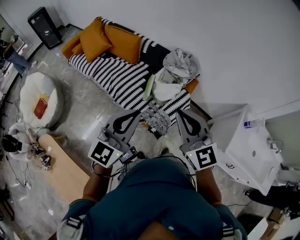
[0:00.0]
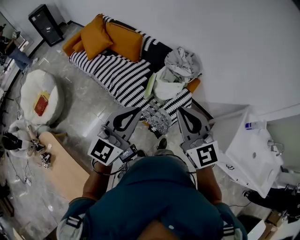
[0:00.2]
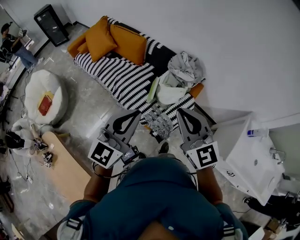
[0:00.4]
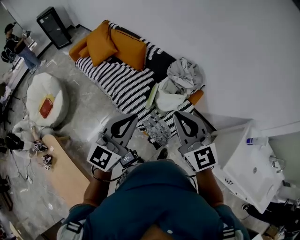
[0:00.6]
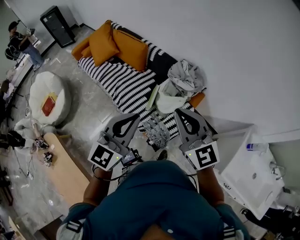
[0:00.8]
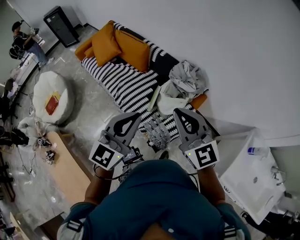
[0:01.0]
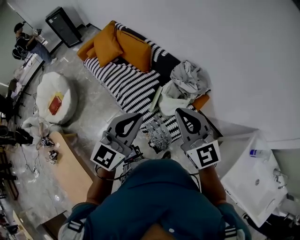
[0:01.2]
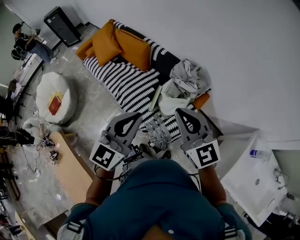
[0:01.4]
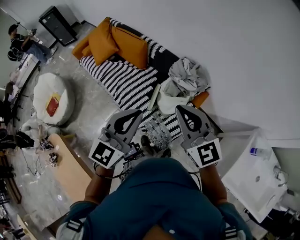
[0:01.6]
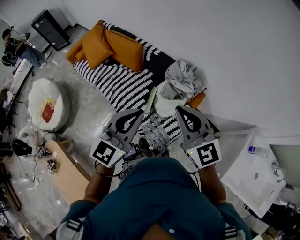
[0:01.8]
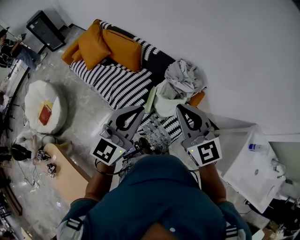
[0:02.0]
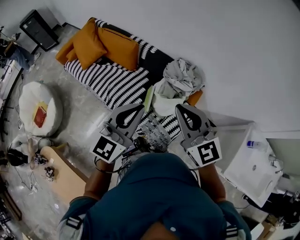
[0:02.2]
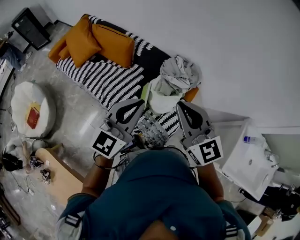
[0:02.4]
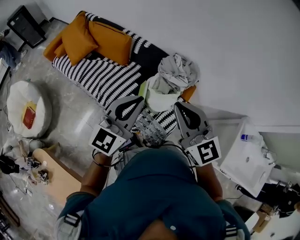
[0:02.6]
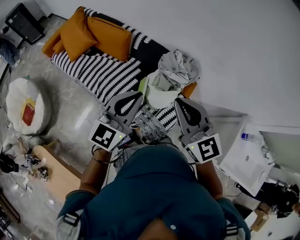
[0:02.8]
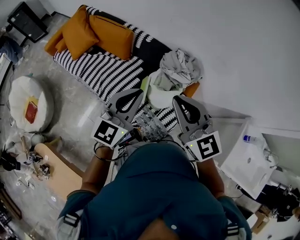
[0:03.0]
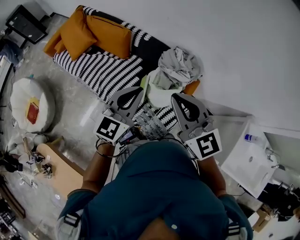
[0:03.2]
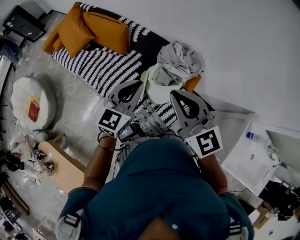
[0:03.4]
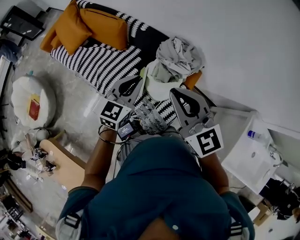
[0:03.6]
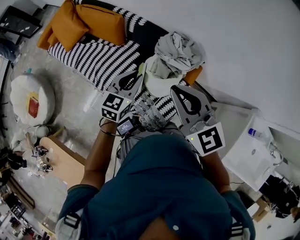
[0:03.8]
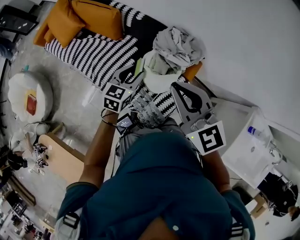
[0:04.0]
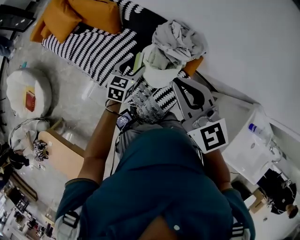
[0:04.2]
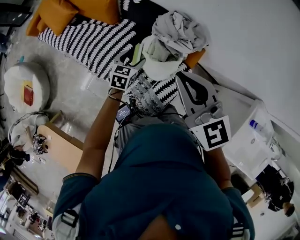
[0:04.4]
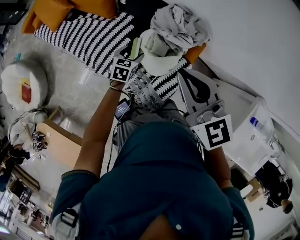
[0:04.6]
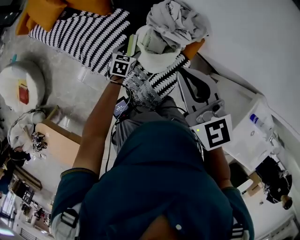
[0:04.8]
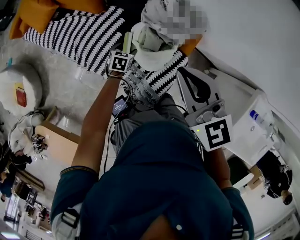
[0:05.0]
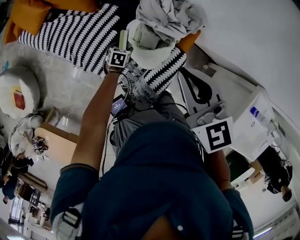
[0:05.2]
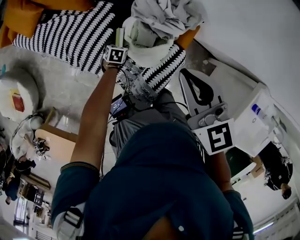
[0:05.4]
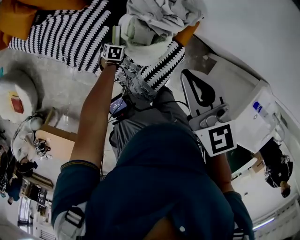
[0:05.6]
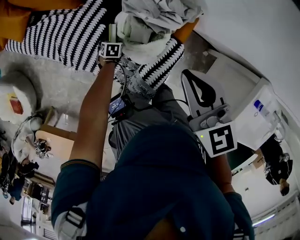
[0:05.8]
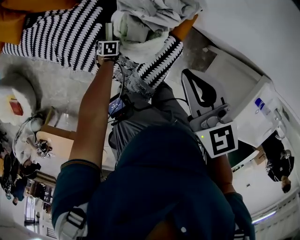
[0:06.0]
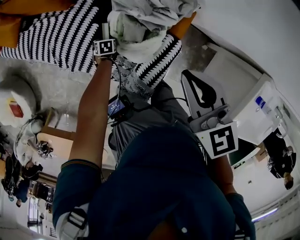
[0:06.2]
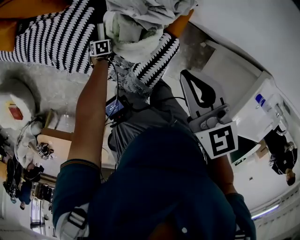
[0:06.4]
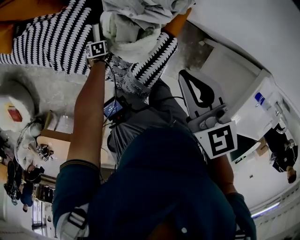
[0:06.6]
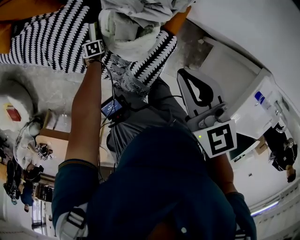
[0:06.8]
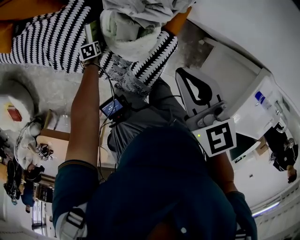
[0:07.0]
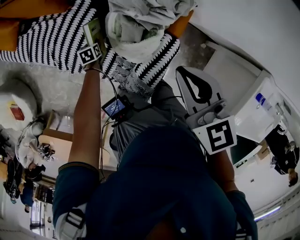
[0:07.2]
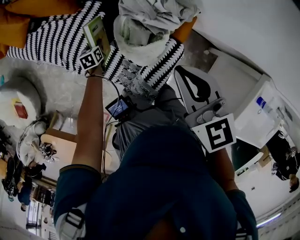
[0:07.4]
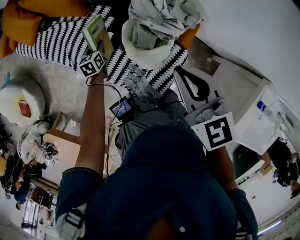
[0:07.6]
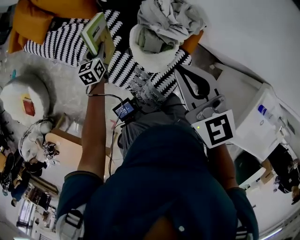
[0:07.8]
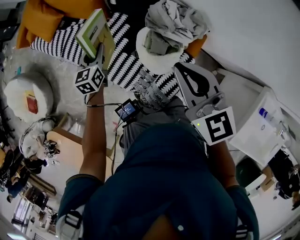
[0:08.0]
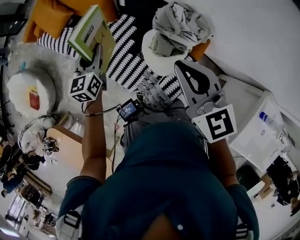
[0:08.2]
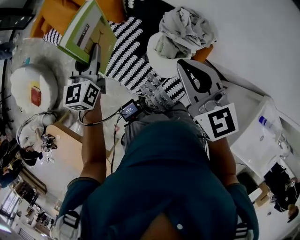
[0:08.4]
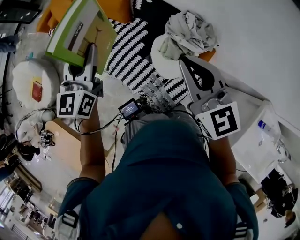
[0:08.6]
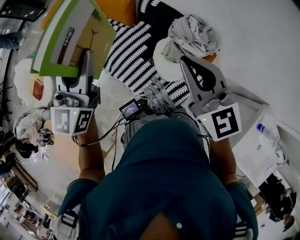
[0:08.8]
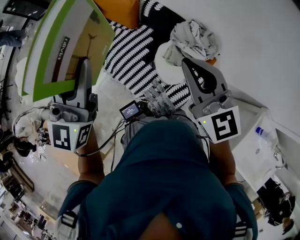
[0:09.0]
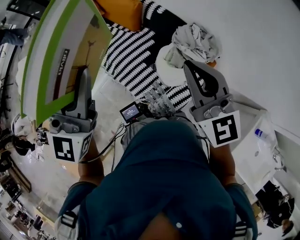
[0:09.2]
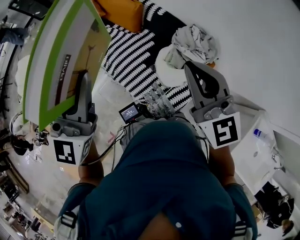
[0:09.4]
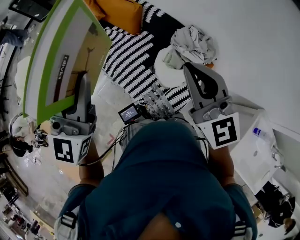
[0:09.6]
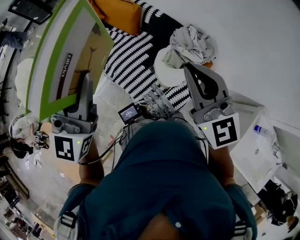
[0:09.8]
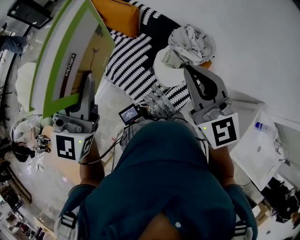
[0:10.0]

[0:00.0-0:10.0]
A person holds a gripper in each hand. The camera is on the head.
0.0 to 1.4 s: Both grippers move forward and to the right, about 20 cm.
1.4 to 2.8 s: The right gripper is displaced to the left and forward by roughly 15 cm. Meanwhile the left gripper shifts roughly 15 cm forward and to the left.
2.8 to 4.2 s: The left gripper shifts about 35 cm downward and forward, angles its fingers downward, by about 30 degrees, and opens; the right gripper travels forward, to the right and downward by about 15 cm.
4.2 to 5.8 s: The left gripper goes about 35 cm downward, and tilts its fingers approximately 40 degrees downward; the right gripper heads downward, covering about 15 cm, and rotates roughly 20 degrees.
5.8 to 7.2 s: The left gripper changes place by roughly 5 cm, rotates about 20 degrees, and closes.
7.2 to 8.6 s: The right gripper moves upward and to the left, roughly 25 cm, and changes its angle by approximately 30 degrees. Meanwhile the left gripper goes roughly 60 cm upward, and angles its fingers upward, by about 60 degrees.
8.6 to 10.0 s: The left gripper moves backward and upward, some 25 cm, and rotates approximately 20 degrees, while the right gripper heads backward and upward, covering some 10 cm.

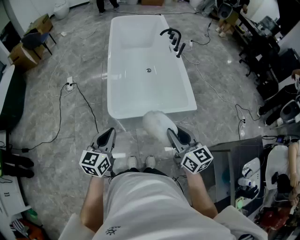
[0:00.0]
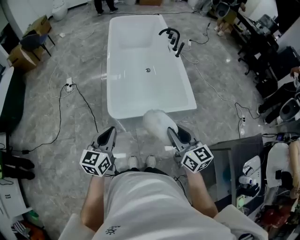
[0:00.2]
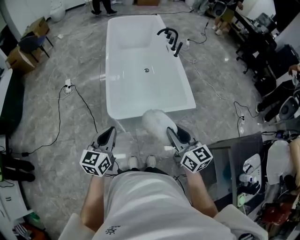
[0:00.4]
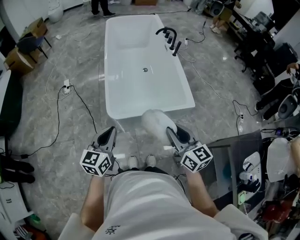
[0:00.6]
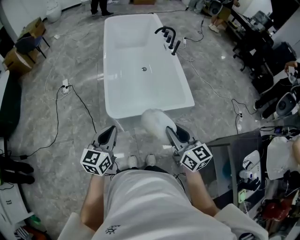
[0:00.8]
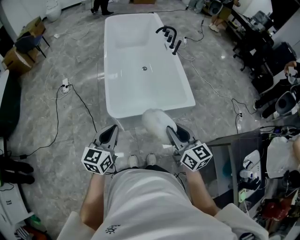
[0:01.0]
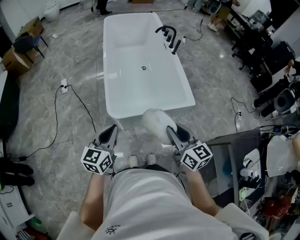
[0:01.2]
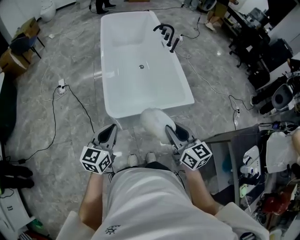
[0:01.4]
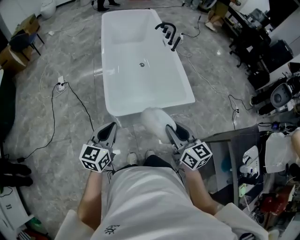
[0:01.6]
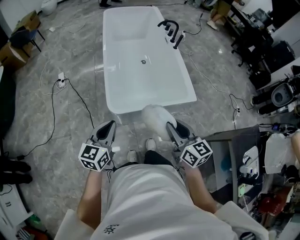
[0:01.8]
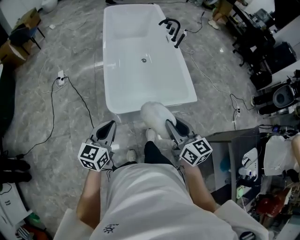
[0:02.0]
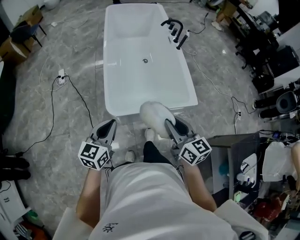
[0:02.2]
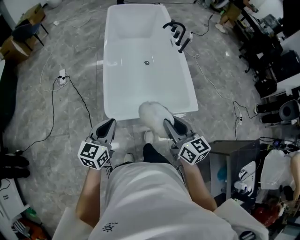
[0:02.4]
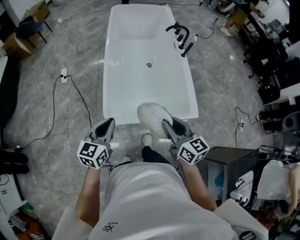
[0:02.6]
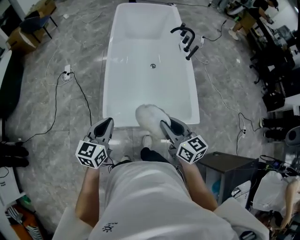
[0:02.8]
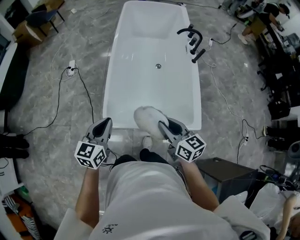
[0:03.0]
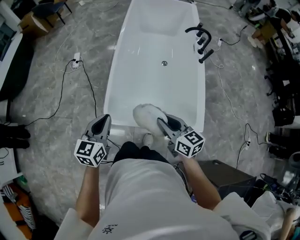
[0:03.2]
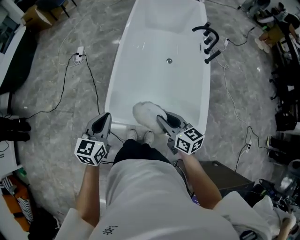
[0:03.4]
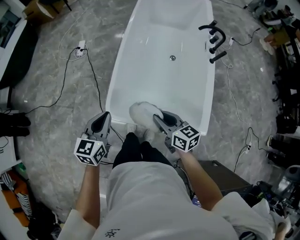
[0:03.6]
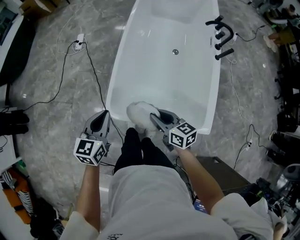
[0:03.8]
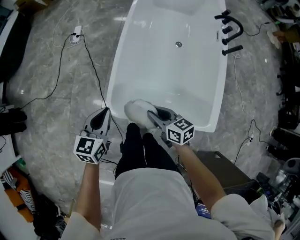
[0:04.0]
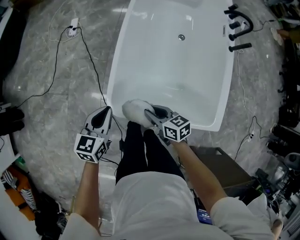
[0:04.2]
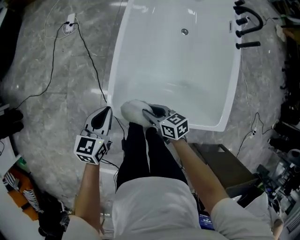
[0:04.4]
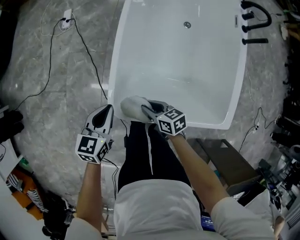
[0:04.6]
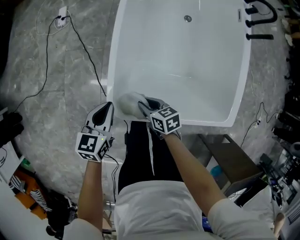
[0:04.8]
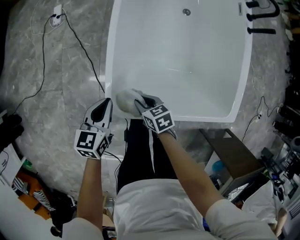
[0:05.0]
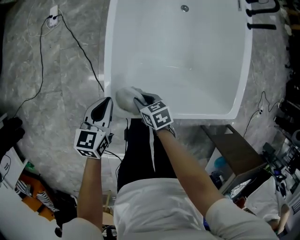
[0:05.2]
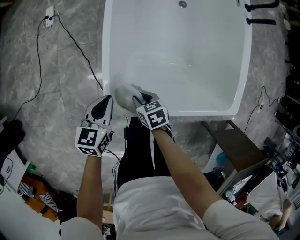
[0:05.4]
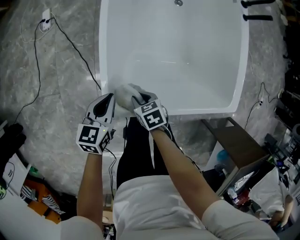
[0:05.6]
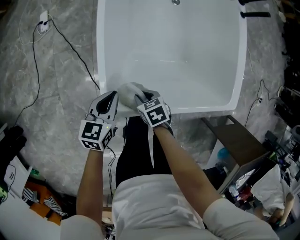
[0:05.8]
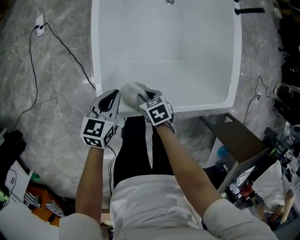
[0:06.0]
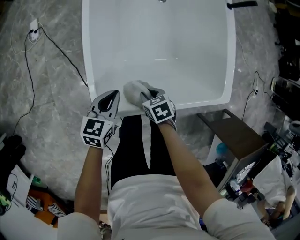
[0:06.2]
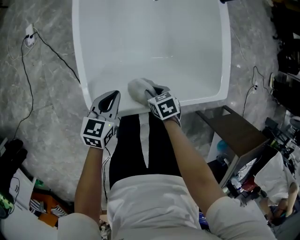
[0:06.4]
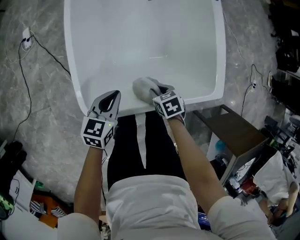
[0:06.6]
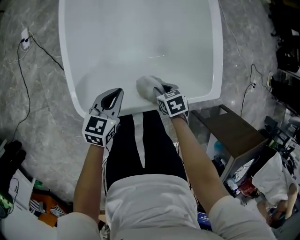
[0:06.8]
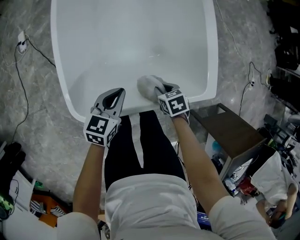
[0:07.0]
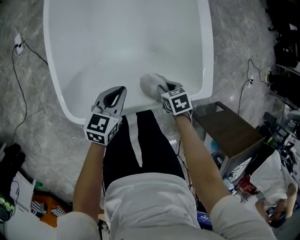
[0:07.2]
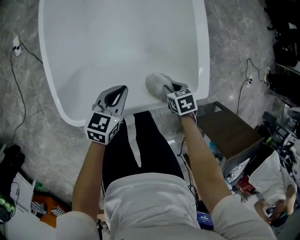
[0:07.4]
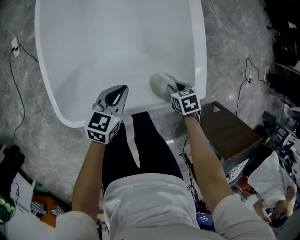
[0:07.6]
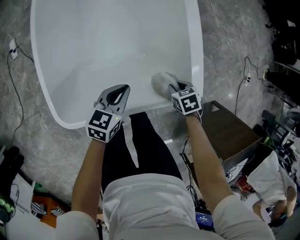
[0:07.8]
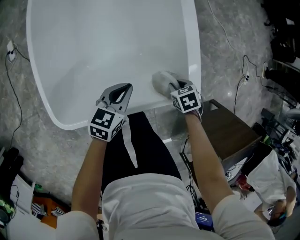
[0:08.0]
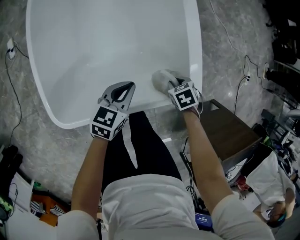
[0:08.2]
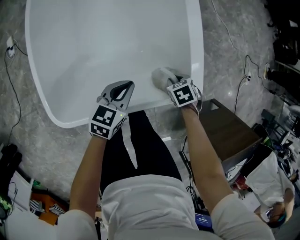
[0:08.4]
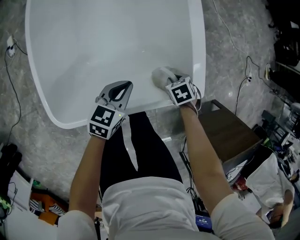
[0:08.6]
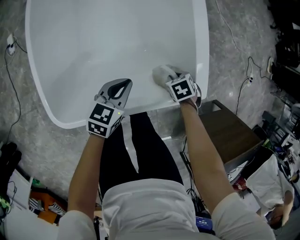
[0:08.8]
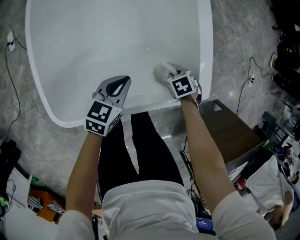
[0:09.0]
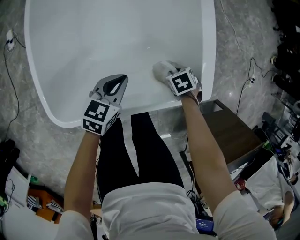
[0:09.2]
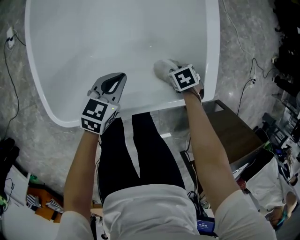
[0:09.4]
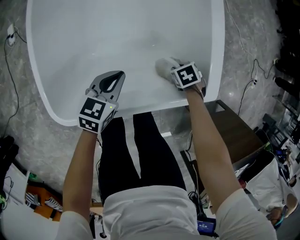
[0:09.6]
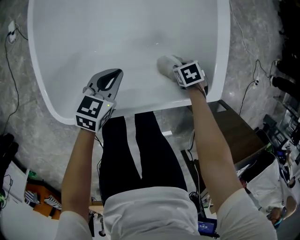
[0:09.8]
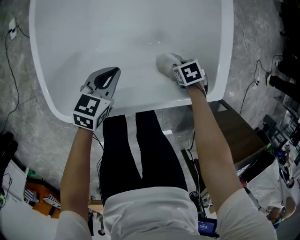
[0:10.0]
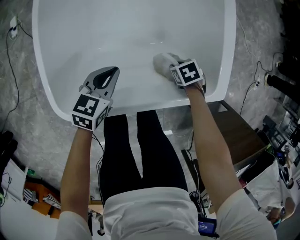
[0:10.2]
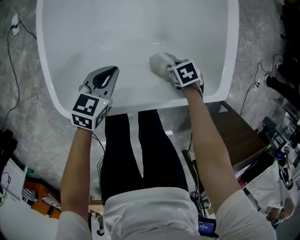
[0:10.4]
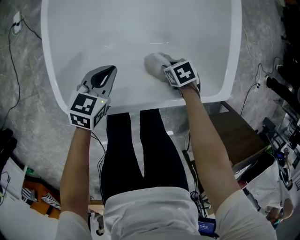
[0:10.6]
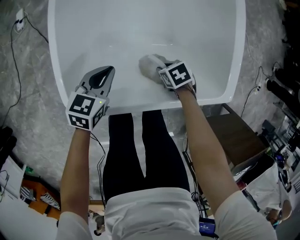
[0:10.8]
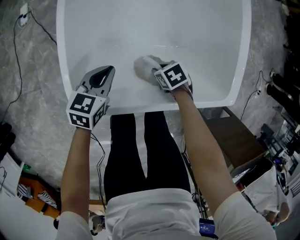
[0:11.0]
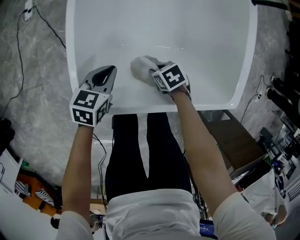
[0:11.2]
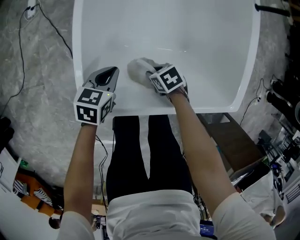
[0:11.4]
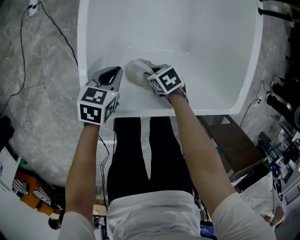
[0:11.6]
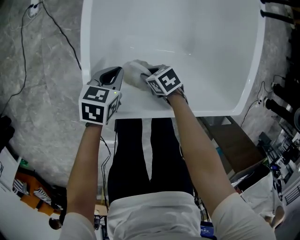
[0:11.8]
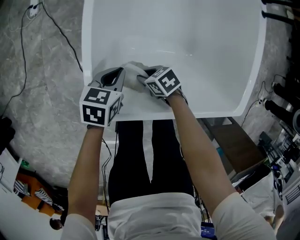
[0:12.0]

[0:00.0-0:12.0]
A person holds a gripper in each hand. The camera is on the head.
0.0 to 1.6 s: The grippers move only a little.
1.6 to 3.0 s: Both grippers move forward, roughly 20 cm. The right gripper changes its angle by approximately 20 degrees.
3.0 to 4.4 s: The right gripper shifts about 30 cm downward and to the left, and changes its angle by some 30 degrees; the left gripper goes about 20 cm downward and forward.
4.4 to 6.0 s: The right gripper is displaced downward by about 10 cm, and changes its angle by some 30 degrees; the left gripper is displaced downward and to the right by some 15 cm.
6.0 to 7.6 s: The left gripper shifts by about 25 cm. The right gripper moves approximately 35 cm.
7.6 to 9.0 s: The right gripper goes about 5 cm downward.
9.0 to 10.4 s: The right gripper shifts by some 10 cm, while the left gripper changes place by some 15 cm.
10.4 to 12.0 s: The left gripper moves some 15 cm, while the right gripper moves approximately 30 cm, and rotates about 30 degrees.

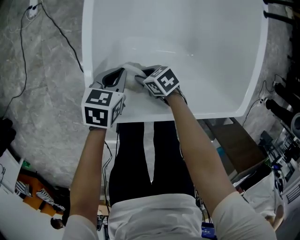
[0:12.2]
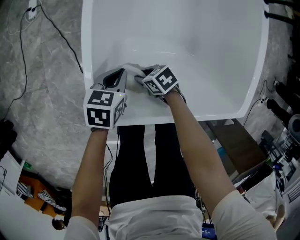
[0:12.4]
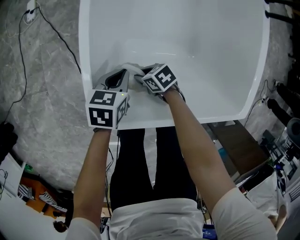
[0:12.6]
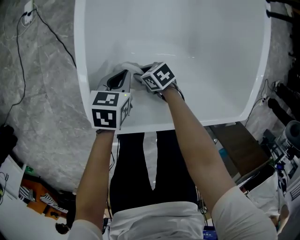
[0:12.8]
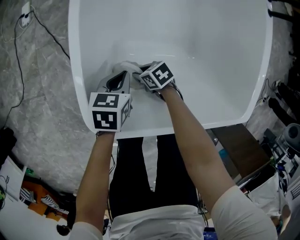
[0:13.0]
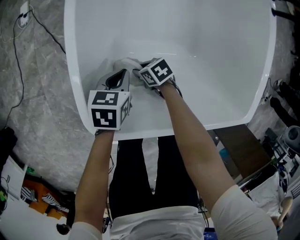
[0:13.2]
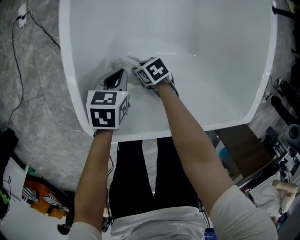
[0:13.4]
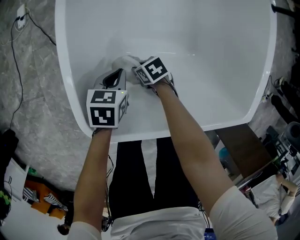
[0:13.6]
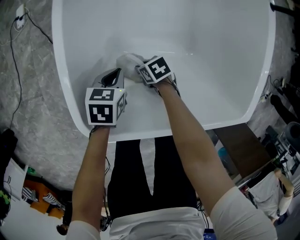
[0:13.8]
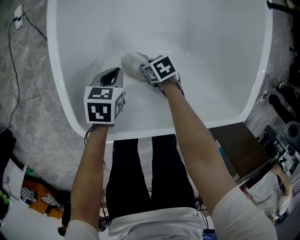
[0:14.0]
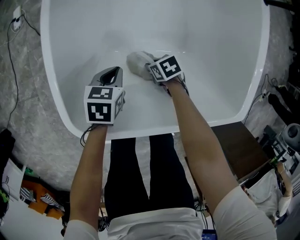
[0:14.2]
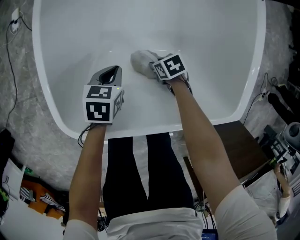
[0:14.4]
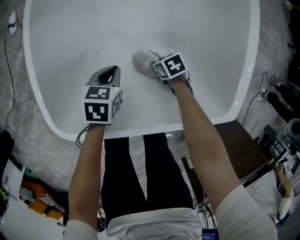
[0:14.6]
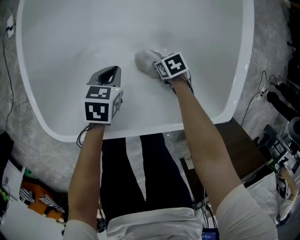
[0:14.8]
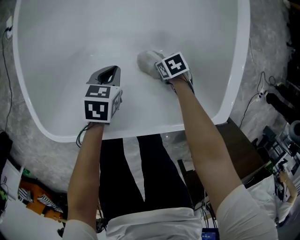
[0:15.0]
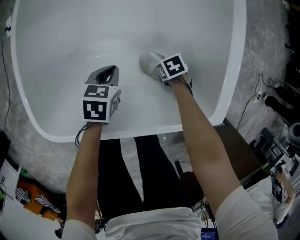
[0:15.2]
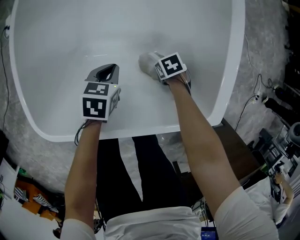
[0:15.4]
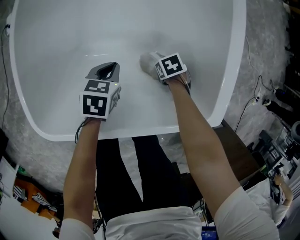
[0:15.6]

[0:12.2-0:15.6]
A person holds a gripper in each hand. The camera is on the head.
12.2 to 13.8 s: Both grippers travel together downward, some 10 cm.
13.8 to 15.6 s: The left gripper moves about 20 cm; the right gripper changes place by about 30 cm.
